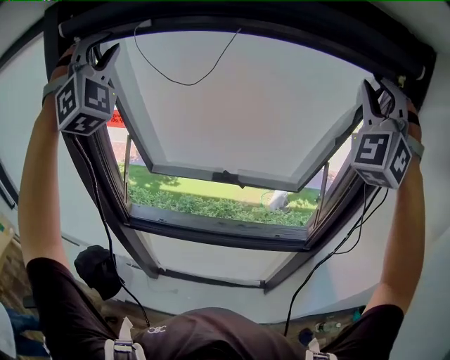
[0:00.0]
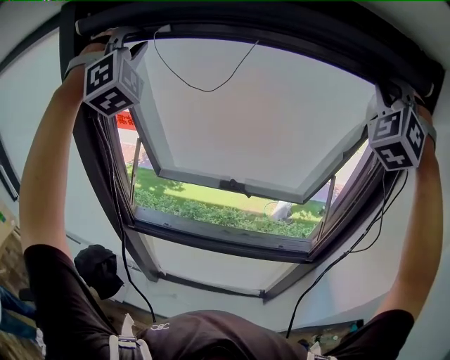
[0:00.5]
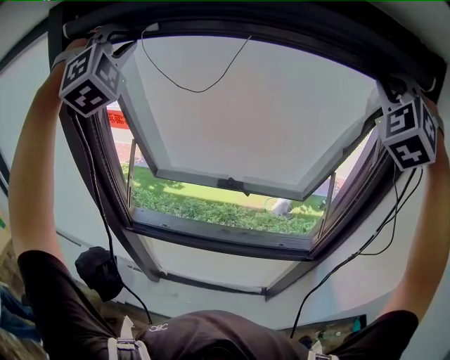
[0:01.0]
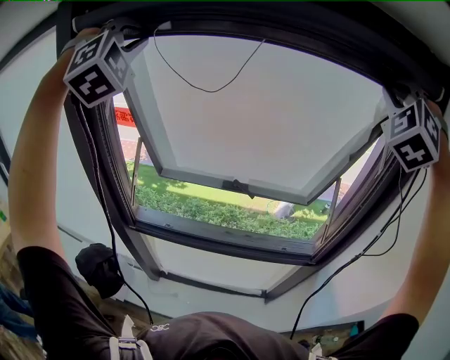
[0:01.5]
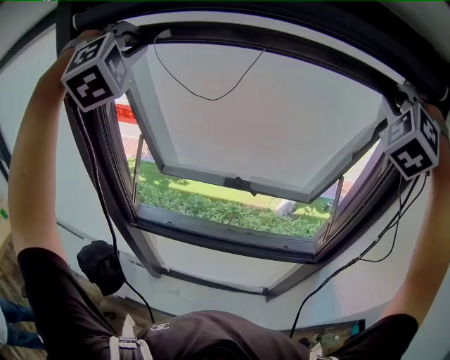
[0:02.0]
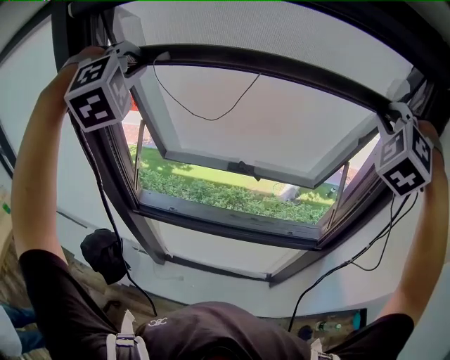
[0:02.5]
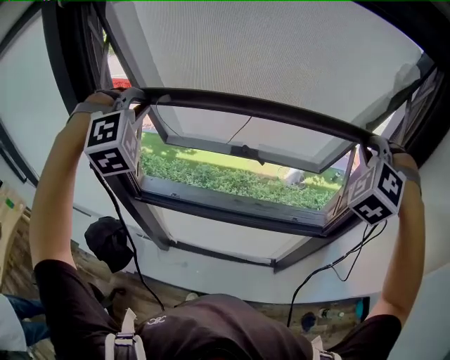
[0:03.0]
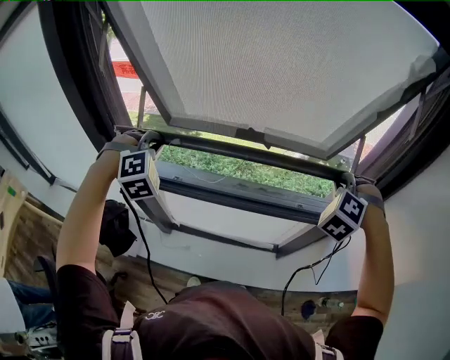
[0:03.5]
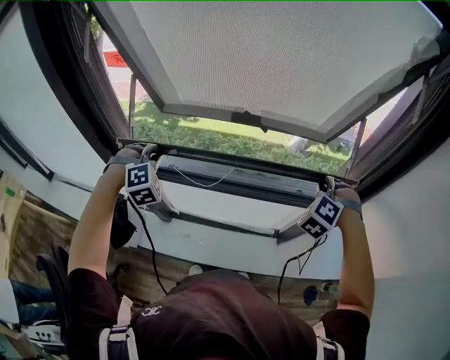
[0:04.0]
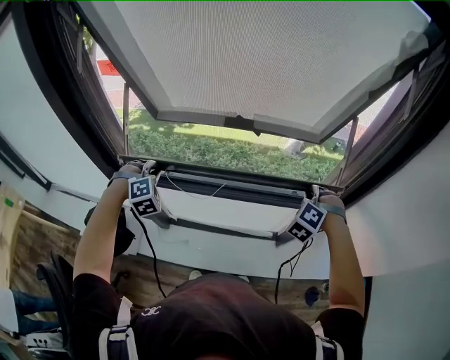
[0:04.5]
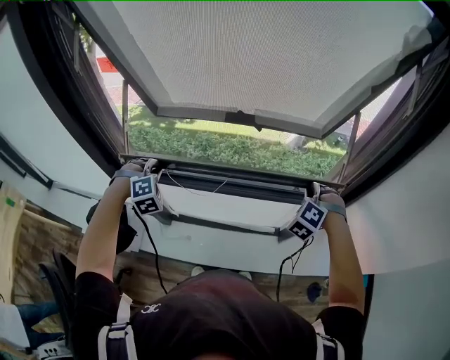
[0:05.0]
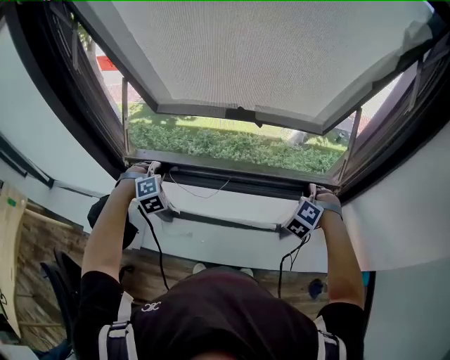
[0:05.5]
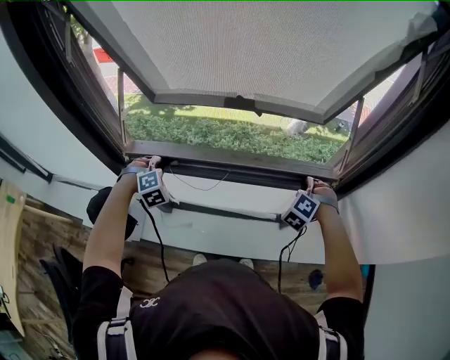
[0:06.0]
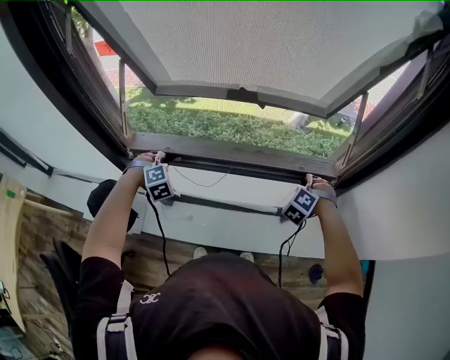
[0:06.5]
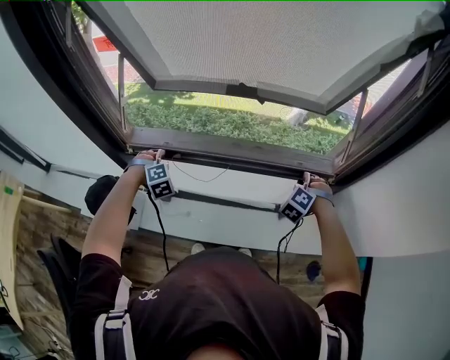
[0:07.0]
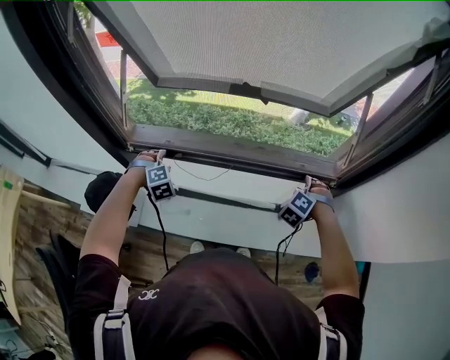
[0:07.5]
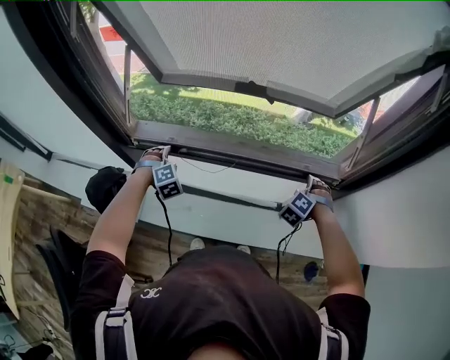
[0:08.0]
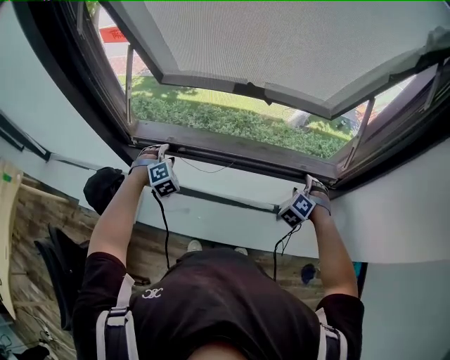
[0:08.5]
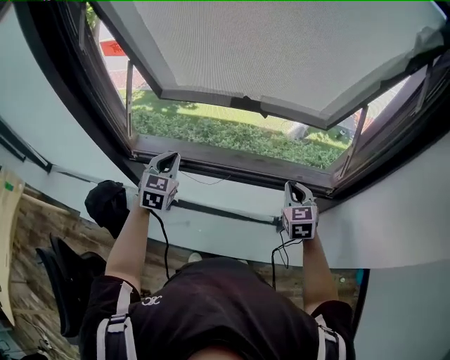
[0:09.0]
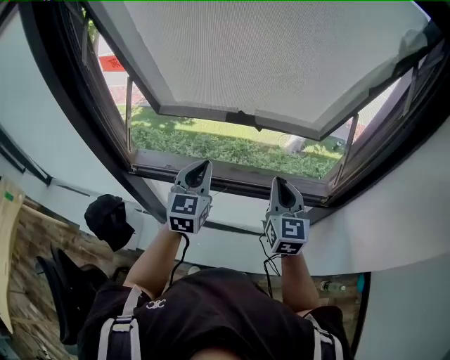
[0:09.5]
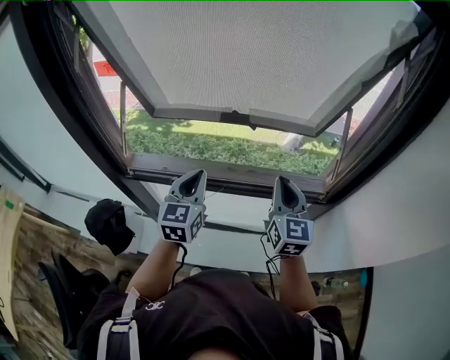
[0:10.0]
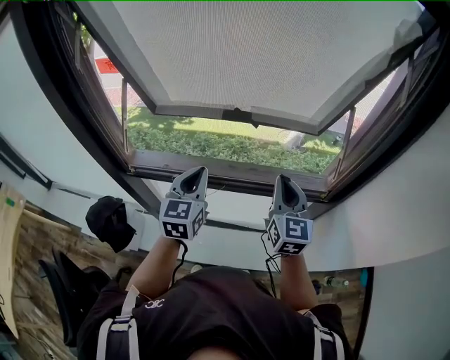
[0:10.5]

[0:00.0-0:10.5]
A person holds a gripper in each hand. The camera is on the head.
0:00.0 to 0:02.0: The right gripper heads forward, covering approximately 5 cm, and swivels roughly 30 degrees, while the left gripper turns by about 30 degrees.
0:02.0 to 0:04.0: Both grippers travel together downward, roughly 50 cm. The right gripper angles its fingers downward, by some 40 degrees; the left gripper points its fingers some 40 degrees further downward.
0:04.0 to 0:06.5: The two grippers go about 15 cm downward.
0:06.5 to 0:08.5: The left gripper opens its fingers, while the right gripper opens.
0:08.5 to 0:10.5: The left gripper heads upward and to the right, covering some 25 cm, rotates around the line of its fingers by roughly 60 degrees, counterclockwise from behind, and closes its fingers. The right gripper travels upward and to the left by some 25 cm, points its fingers some 40 degrees further upward, and closes its fingers.

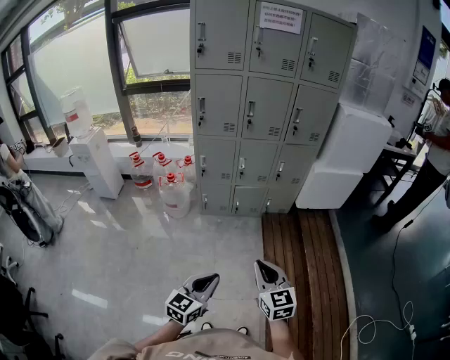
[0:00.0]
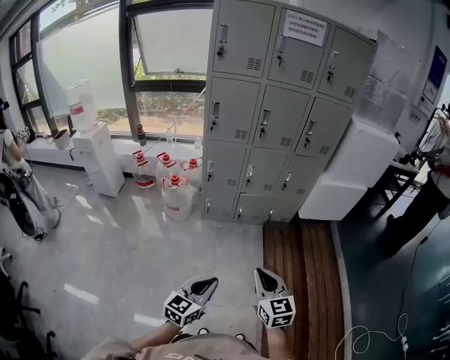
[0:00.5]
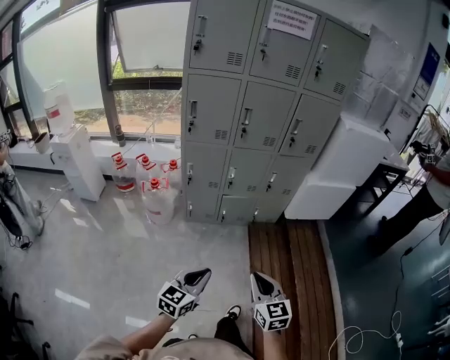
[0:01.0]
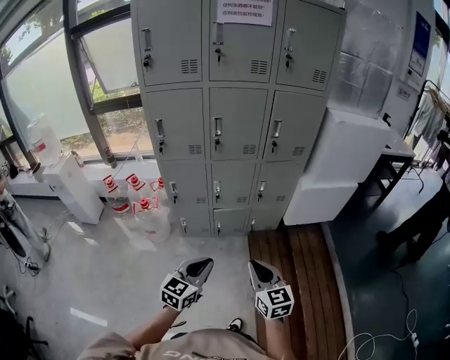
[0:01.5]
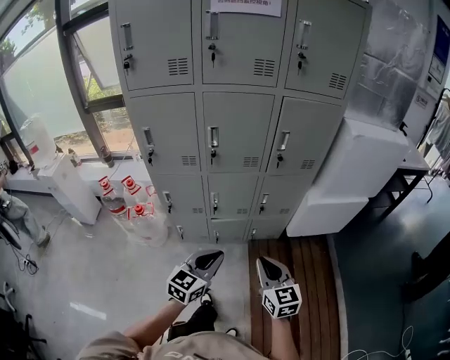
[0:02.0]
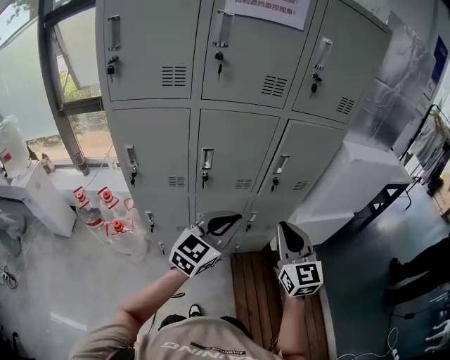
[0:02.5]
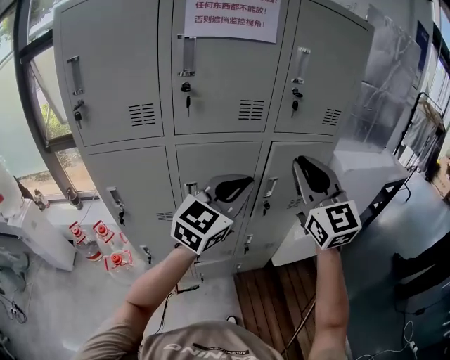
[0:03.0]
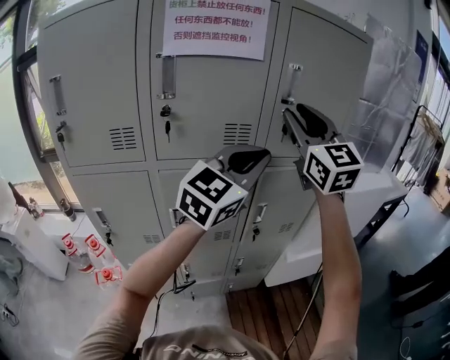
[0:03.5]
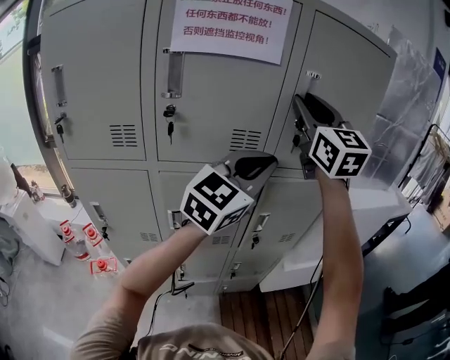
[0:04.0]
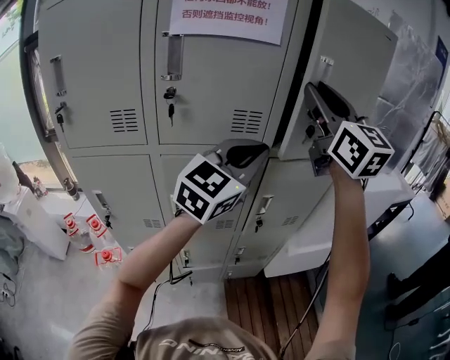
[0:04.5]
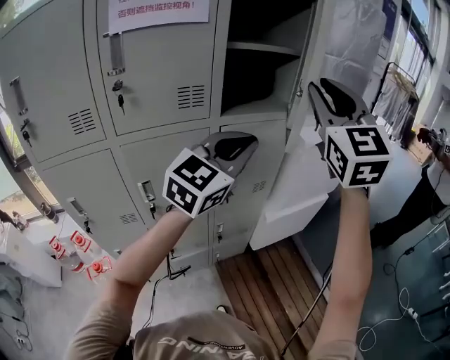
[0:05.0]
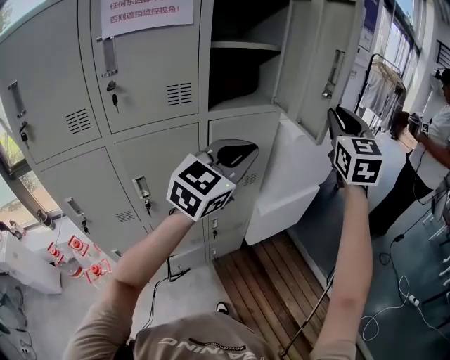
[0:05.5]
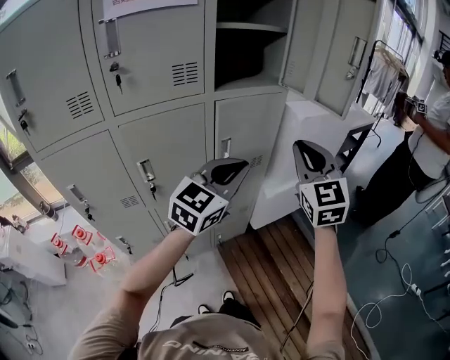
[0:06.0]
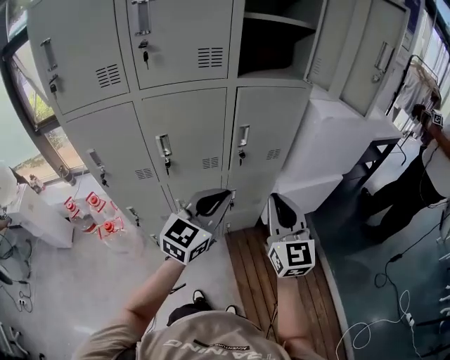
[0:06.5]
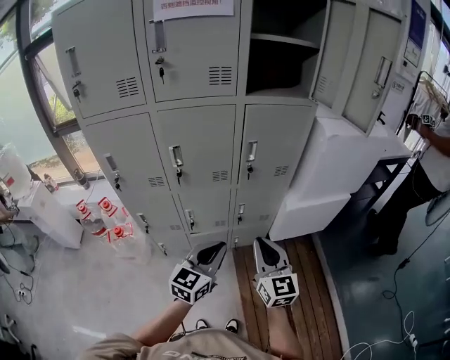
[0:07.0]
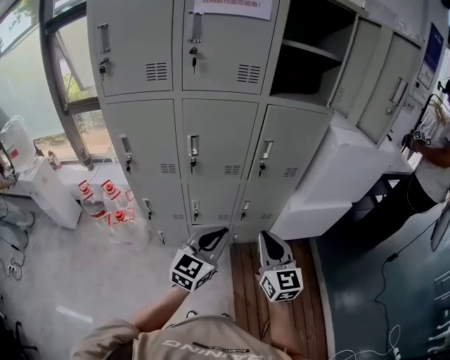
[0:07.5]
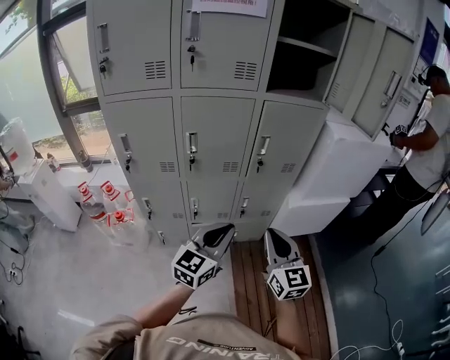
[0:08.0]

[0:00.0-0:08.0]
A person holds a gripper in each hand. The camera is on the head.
0:00.0 to 0:02.0: The grippers both shift forward by some 40 cm.
0:02.0 to 0:04.0: Both grippers are carried forward, about 40 cm. The grippers both shift upward by about 50 cm. The left gripper changes its angle by roughly 30 degrees, while the right gripper swivels about 40 degrees.
0:04.0 to 0:06.0: The left gripper travels downward by some 15 cm; the right gripper shifts by approximately 35 cm, and changes its angle by about 30 degrees.
0:06.0 to 0:08.0: The right gripper shifts some 25 cm downward and backward, and changes its angle by about 30 degrees. The left gripper moves backward and downward, approximately 25 cm, and swivels about 30 degrees.

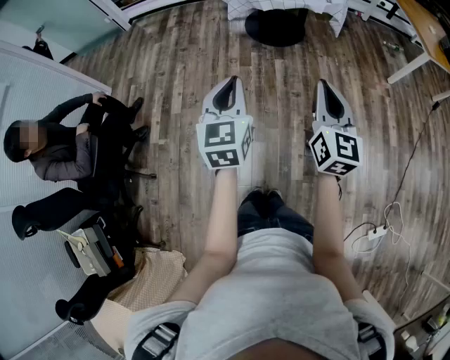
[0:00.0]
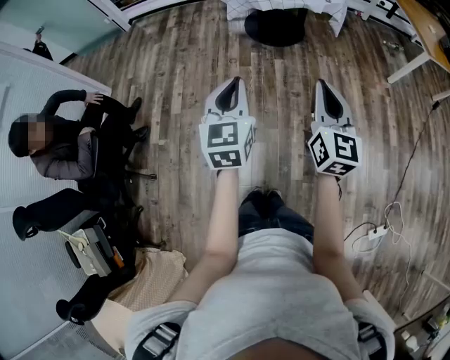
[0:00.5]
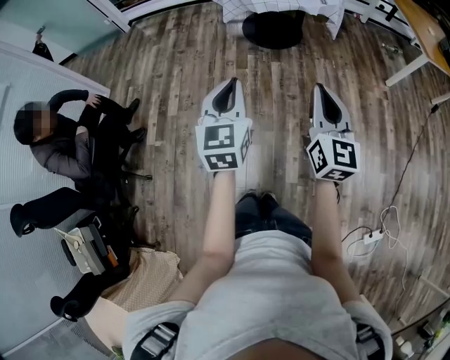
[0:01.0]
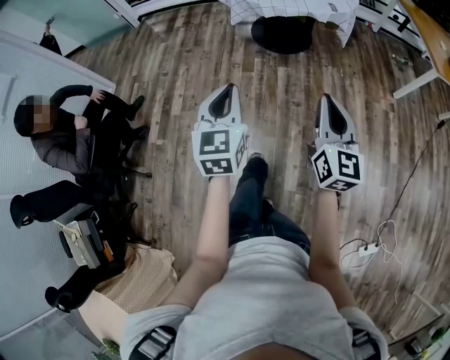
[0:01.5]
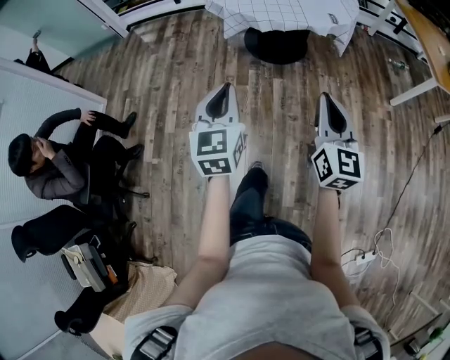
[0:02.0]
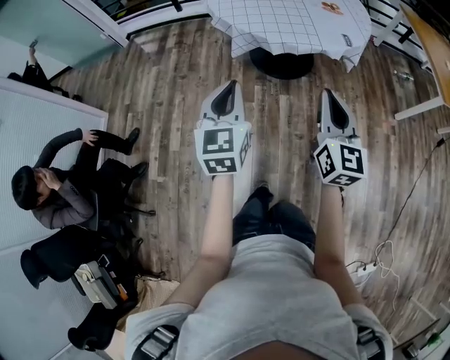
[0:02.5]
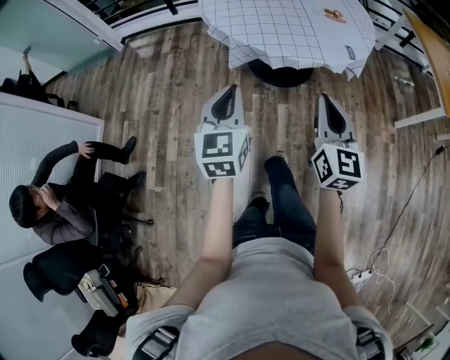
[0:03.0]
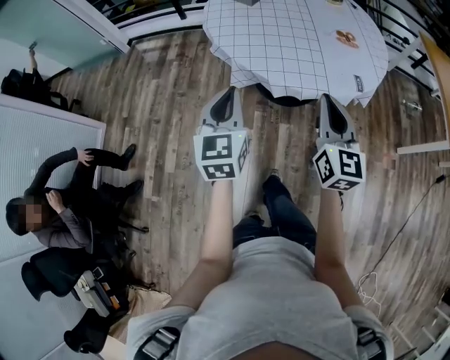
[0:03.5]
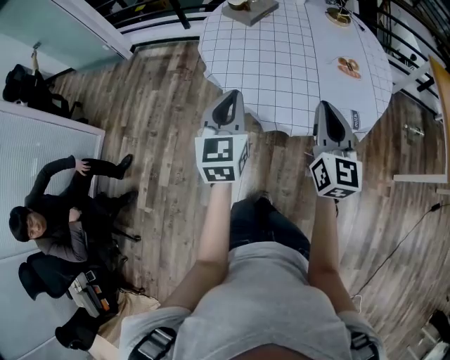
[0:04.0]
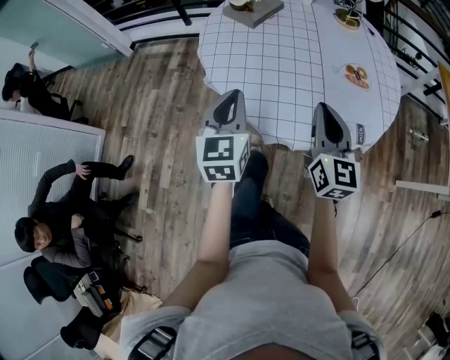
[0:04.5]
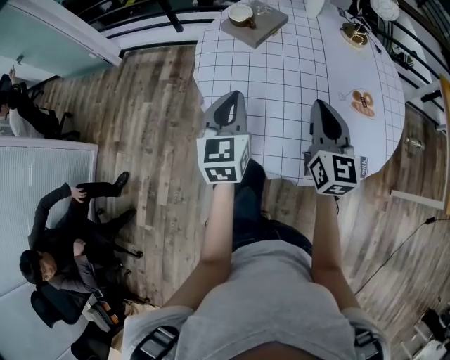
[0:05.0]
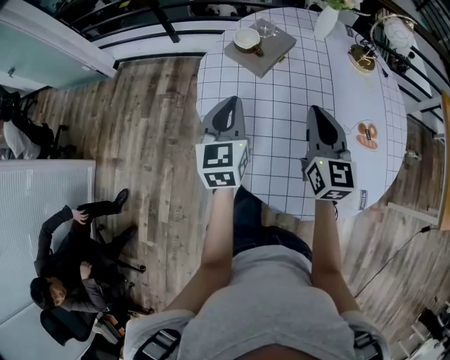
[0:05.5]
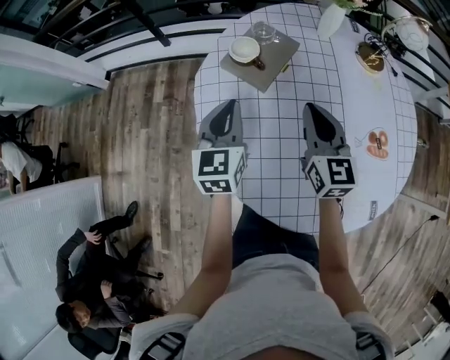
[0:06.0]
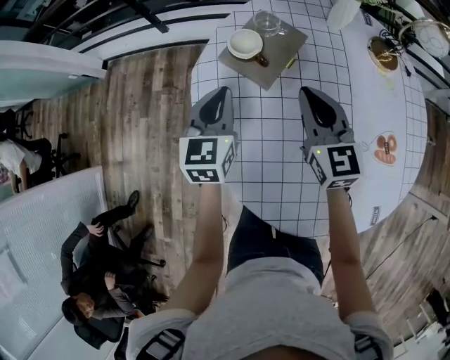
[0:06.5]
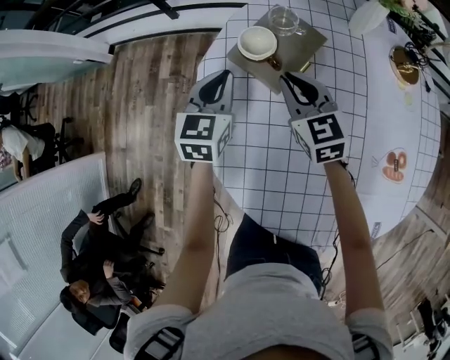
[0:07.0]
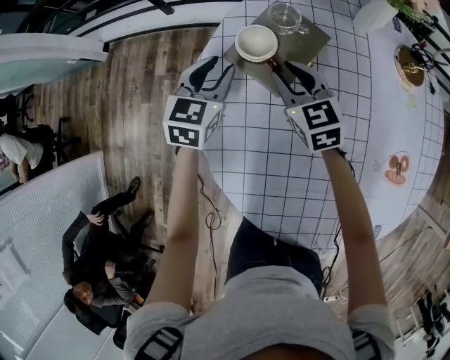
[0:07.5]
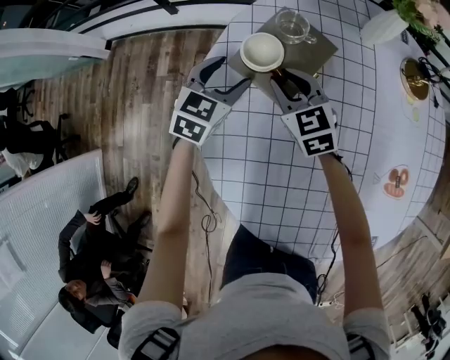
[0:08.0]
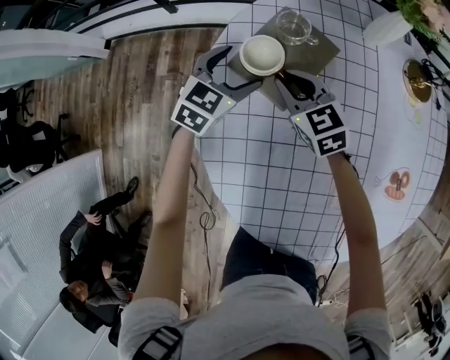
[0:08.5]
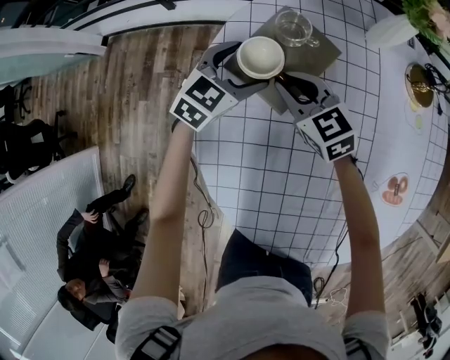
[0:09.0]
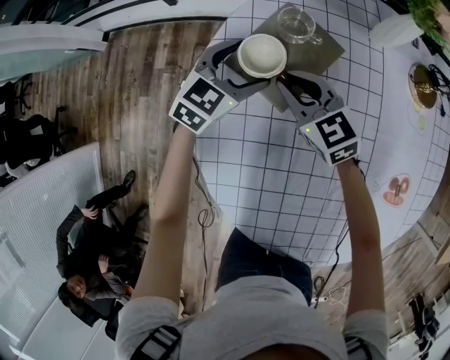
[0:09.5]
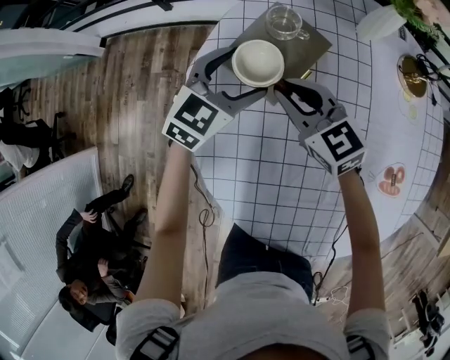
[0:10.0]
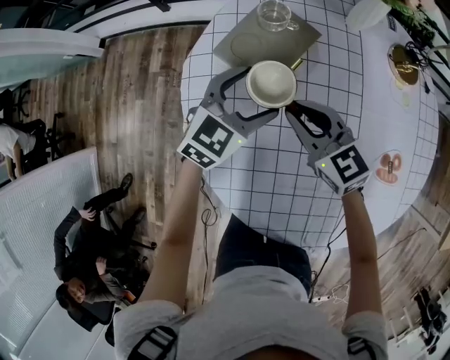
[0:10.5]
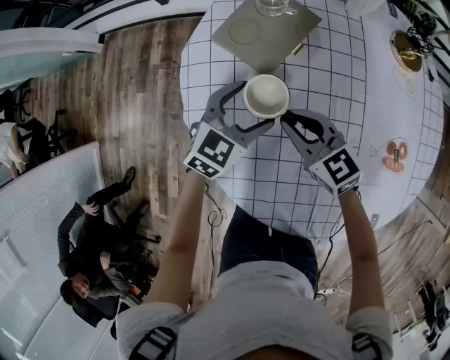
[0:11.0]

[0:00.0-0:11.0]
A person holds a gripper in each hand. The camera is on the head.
0:00.0 to 0:02.0: The two grippers go some 15 cm forward.
0:02.0 to 0:03.5: Both grippers travel together forward, roughly 35 cm.
0:03.5 to 0:05.5: Both grippers are carried forward, some 50 cm.
0:05.5 to 0:07.5: Both grippers travel together forward and downward, about 30 cm. The left gripper rotates some 30 degrees, and opens its fingers, while the right gripper swivels about 30 degrees.
0:07.5 to 0:09.0: The left gripper goes some 5 cm to the right, rotates roughly 30 degrees, and opens up.
0:09.0 to 0:11.0: The two grippers go some 20 cm backward.
